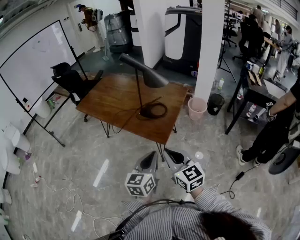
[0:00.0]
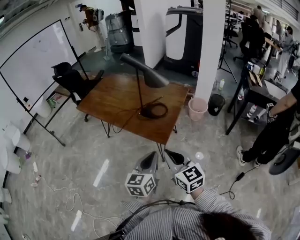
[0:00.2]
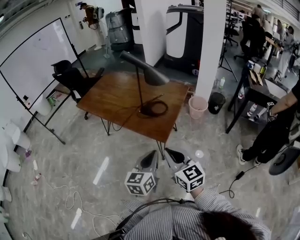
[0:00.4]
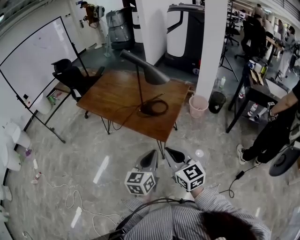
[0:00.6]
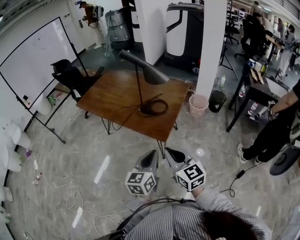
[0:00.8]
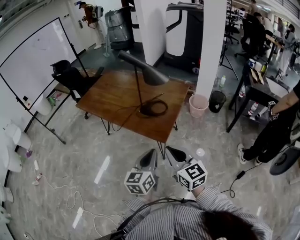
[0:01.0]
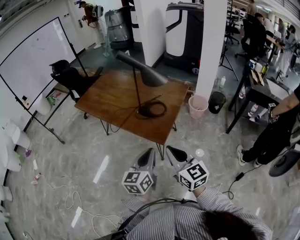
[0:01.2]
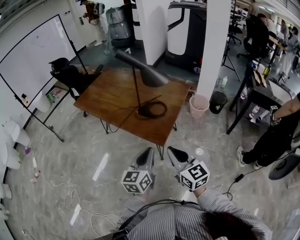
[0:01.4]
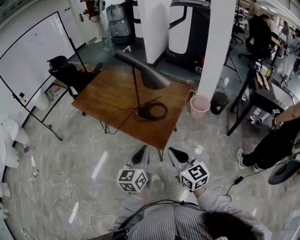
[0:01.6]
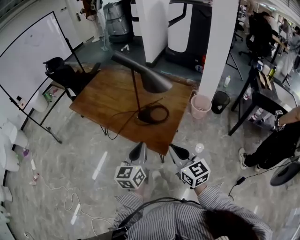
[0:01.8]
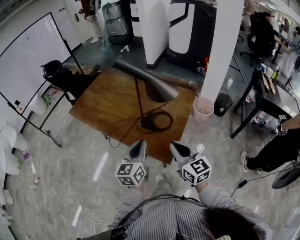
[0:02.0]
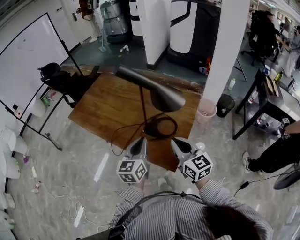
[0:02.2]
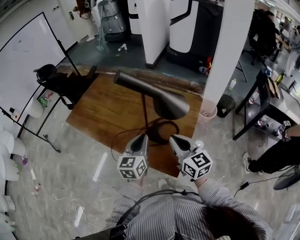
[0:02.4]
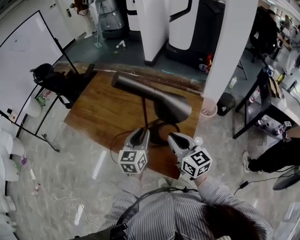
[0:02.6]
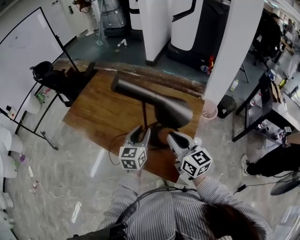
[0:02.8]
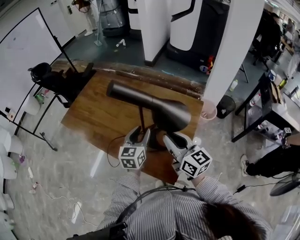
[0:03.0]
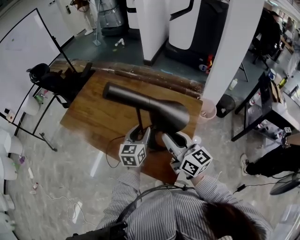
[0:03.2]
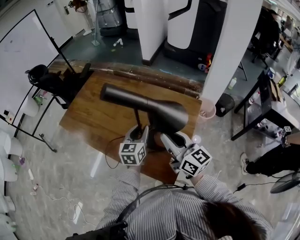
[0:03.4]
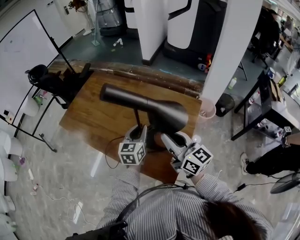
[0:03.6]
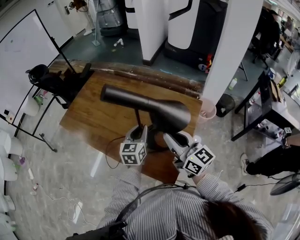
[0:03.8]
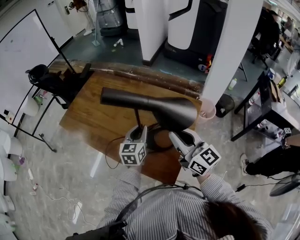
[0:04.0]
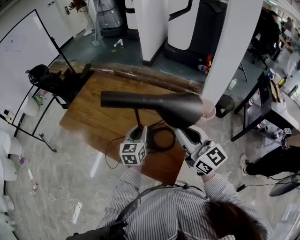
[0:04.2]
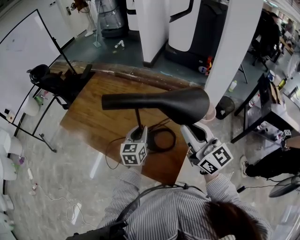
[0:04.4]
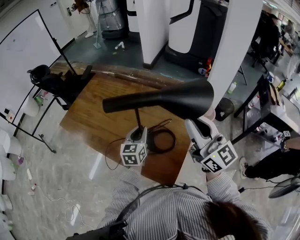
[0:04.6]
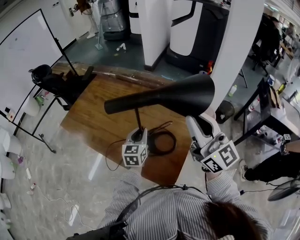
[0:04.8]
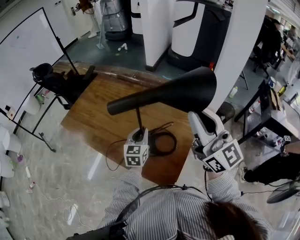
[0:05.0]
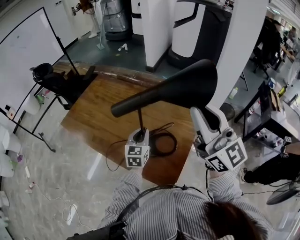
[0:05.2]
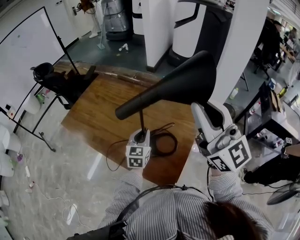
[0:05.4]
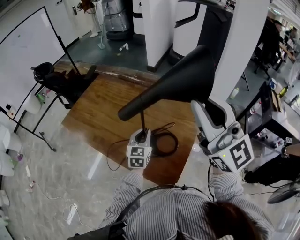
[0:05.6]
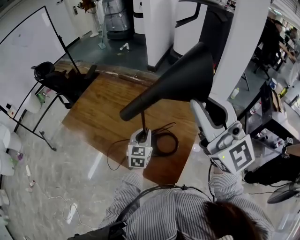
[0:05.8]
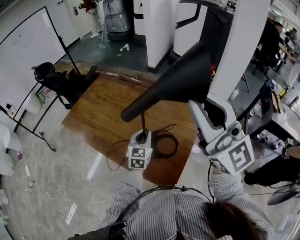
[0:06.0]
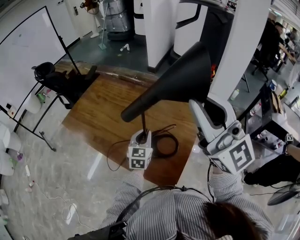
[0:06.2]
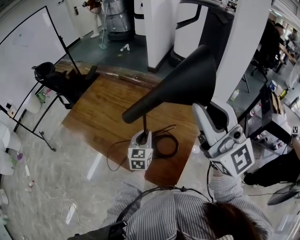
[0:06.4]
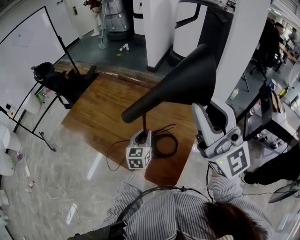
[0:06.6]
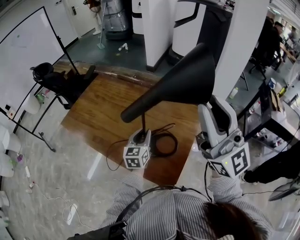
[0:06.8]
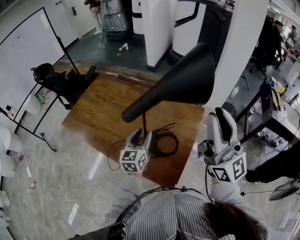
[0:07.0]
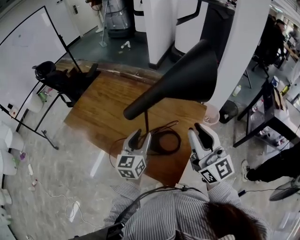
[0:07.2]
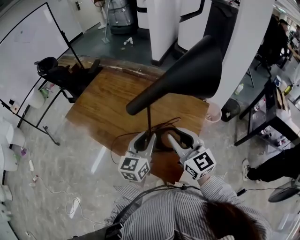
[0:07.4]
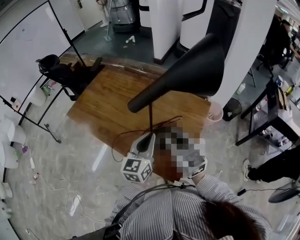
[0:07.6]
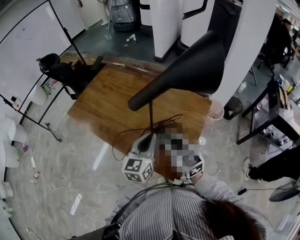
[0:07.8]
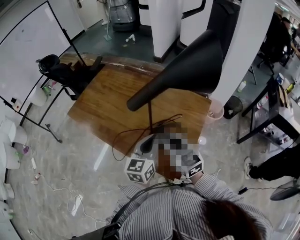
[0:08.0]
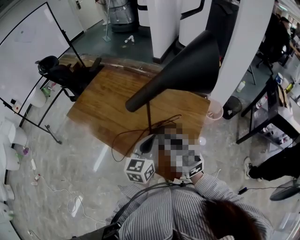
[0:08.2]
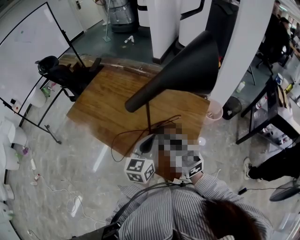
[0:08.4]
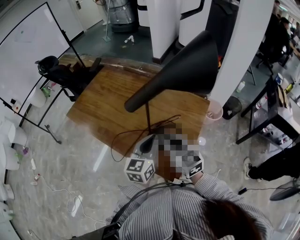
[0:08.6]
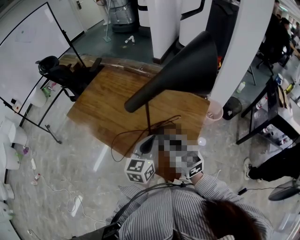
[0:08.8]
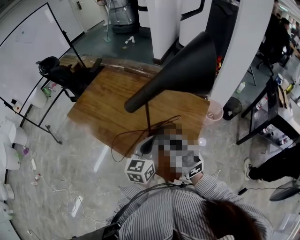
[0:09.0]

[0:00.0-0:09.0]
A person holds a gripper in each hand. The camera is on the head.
0:00.0 to 0:01.6: The left gripper shifts approximately 10 cm forward. Meanwhile the right gripper shifts approximately 10 cm forward and to the right.
0:01.6 to 0:03.0: Both grippers move forward, roughly 35 cm. The left gripper opens up.
0:03.0 to 0:04.4: The right gripper goes roughly 10 cm upward and to the right. Meanwhile the left gripper closes.
0:04.4 to 0:06.0: The right gripper shifts approximately 20 cm upward, and rotates some 30 degrees.
0:06.0 to 0:07.6: The right gripper shifts approximately 30 cm downward, and swivels roughly 40 degrees. The left gripper shifts about 10 cm backward and upward, and opens, then closes again.
0:07.6 to 0:09.0: The grippers stay close to where they were, moving slightly.

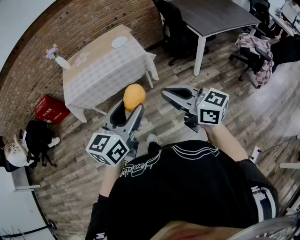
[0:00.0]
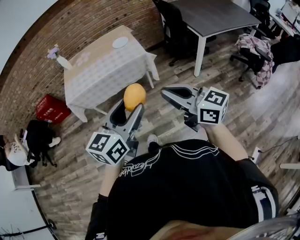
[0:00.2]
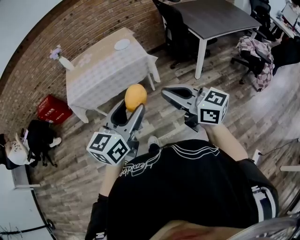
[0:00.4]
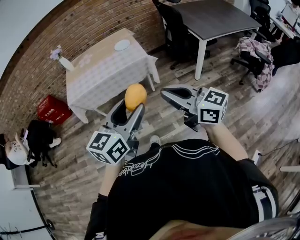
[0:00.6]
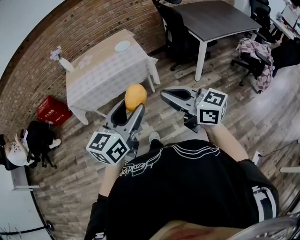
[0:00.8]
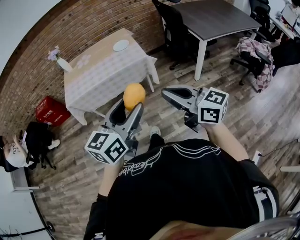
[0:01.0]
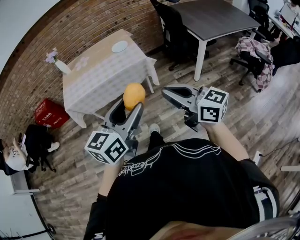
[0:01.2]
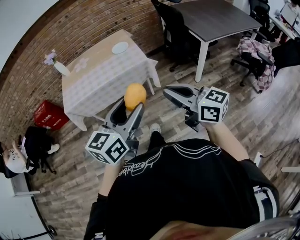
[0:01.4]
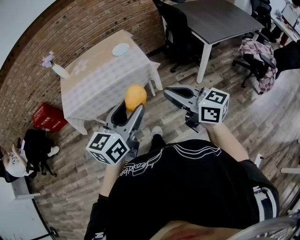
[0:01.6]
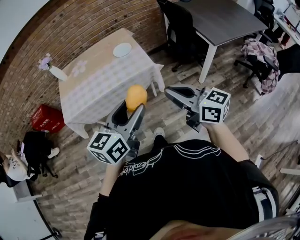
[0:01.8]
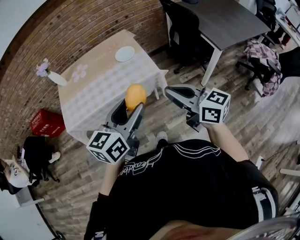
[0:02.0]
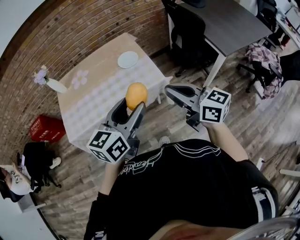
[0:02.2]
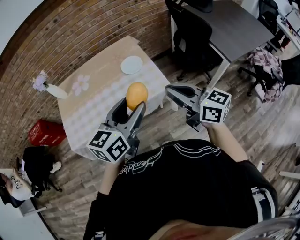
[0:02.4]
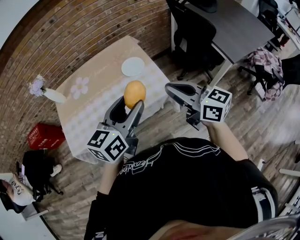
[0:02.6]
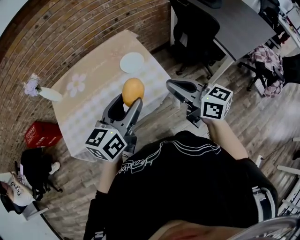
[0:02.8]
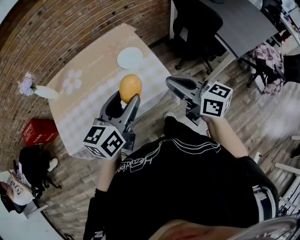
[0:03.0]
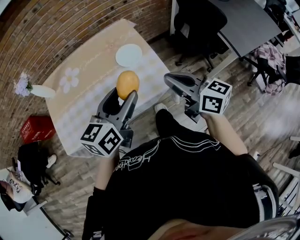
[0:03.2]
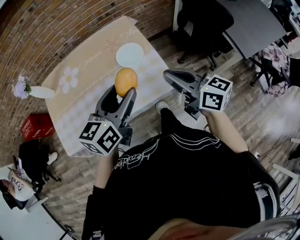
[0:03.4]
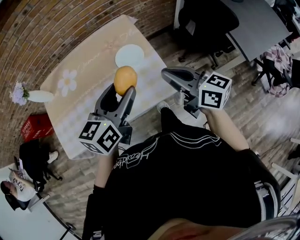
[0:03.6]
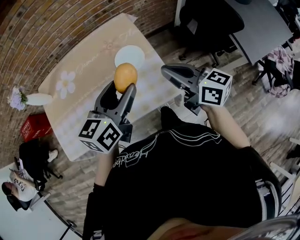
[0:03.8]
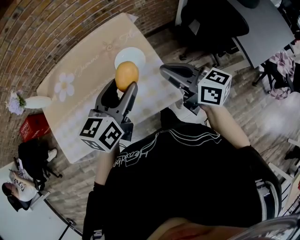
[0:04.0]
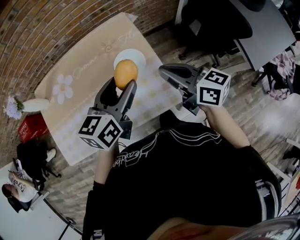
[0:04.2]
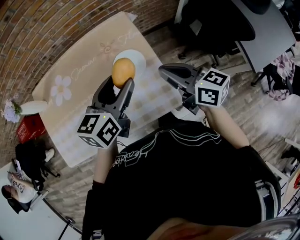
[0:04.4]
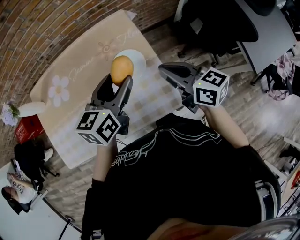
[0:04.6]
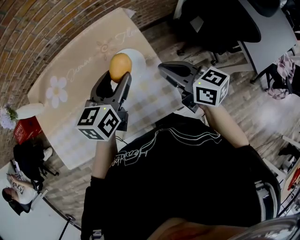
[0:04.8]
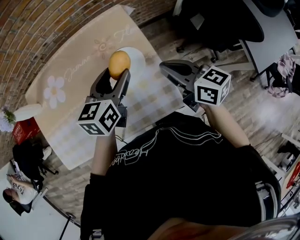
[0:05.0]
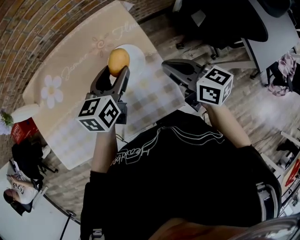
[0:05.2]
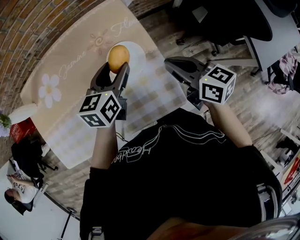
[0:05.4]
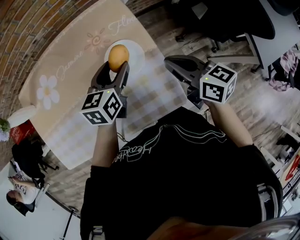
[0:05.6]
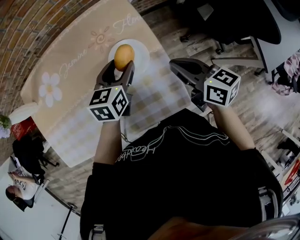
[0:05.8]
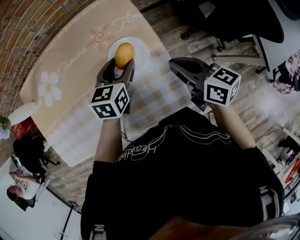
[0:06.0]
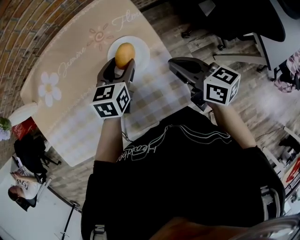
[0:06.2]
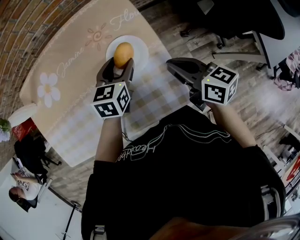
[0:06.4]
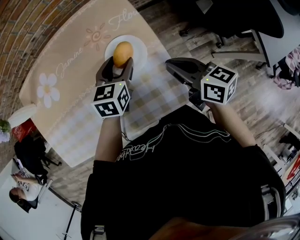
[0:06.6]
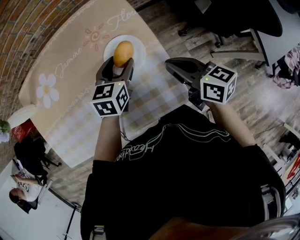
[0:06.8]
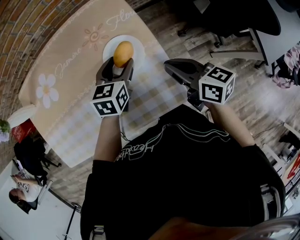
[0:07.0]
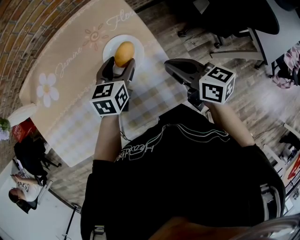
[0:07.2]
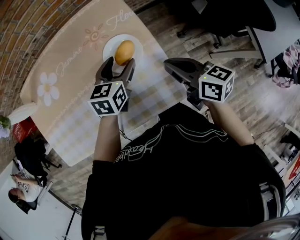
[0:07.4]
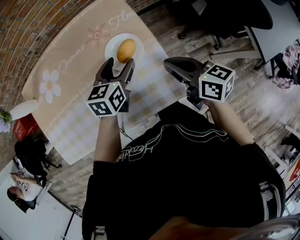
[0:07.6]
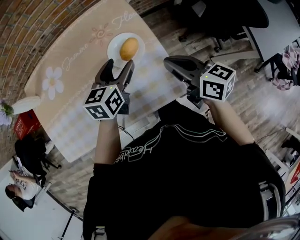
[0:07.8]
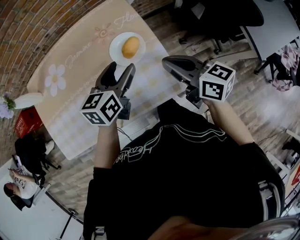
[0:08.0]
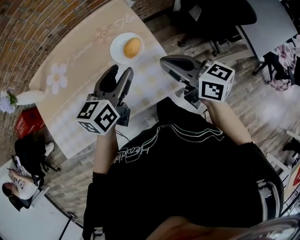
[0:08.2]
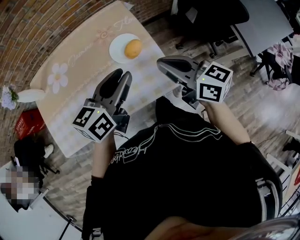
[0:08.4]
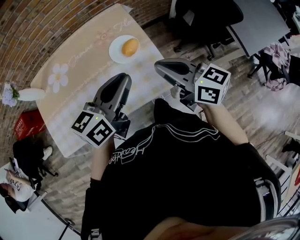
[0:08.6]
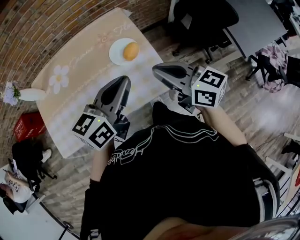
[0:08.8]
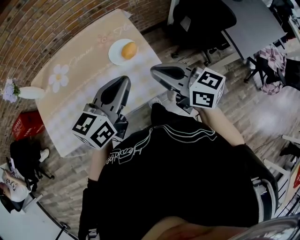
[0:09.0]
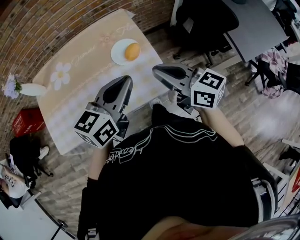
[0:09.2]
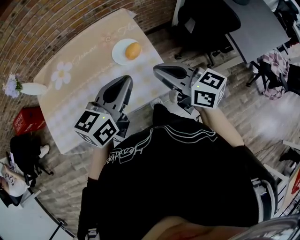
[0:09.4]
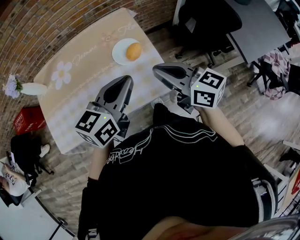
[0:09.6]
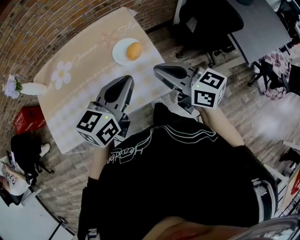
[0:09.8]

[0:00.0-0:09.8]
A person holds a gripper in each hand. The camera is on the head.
0:00.0 to 0:01.4: The grippers both shift forward by some 5 cm.
0:01.4 to 0:02.8: Both grippers are carried forward, approximately 40 cm.
0:02.8 to 0:04.2: The left gripper heads forward, covering roughly 25 cm. The right gripper is displaced forward and downward by some 25 cm.
0:04.2 to 0:05.6: The right gripper moves downward and forward, roughly 10 cm, while the left gripper moves downward and forward, approximately 20 cm.
0:05.6 to 0:07.0: The left gripper changes place by some 5 cm.
0:07.0 to 0:08.4: The left gripper travels upward and backward by some 25 cm, swivels approximately 30 degrees, and closes up. Meanwhile the right gripper moves upward and backward, some 15 cm.
0:08.4 to 0:09.8: The left gripper ends up some 5 cm from where it was, and closes.

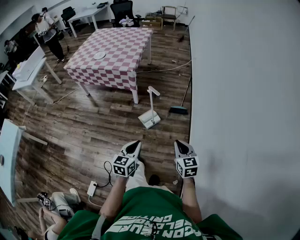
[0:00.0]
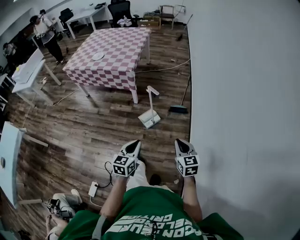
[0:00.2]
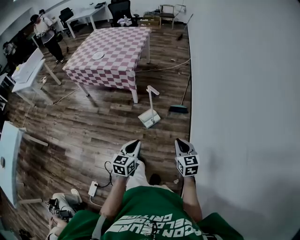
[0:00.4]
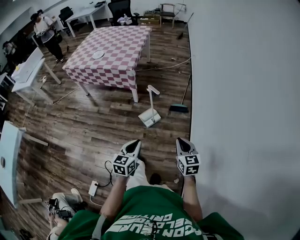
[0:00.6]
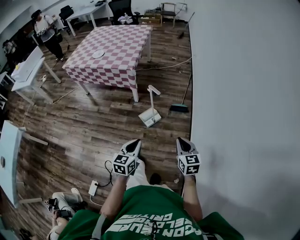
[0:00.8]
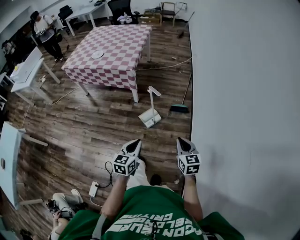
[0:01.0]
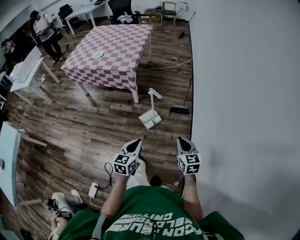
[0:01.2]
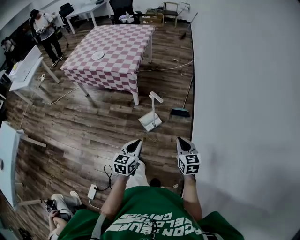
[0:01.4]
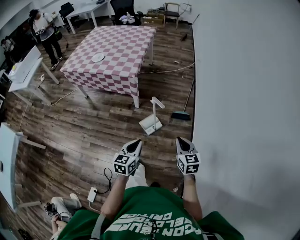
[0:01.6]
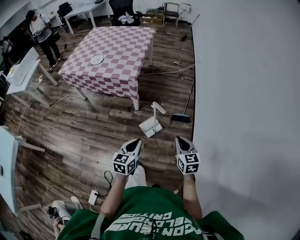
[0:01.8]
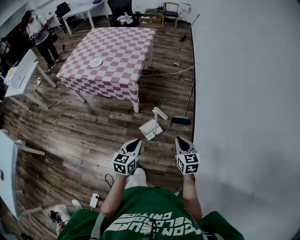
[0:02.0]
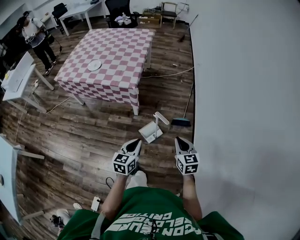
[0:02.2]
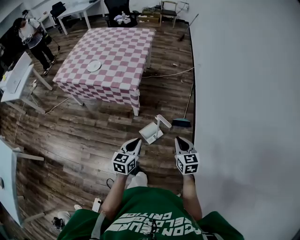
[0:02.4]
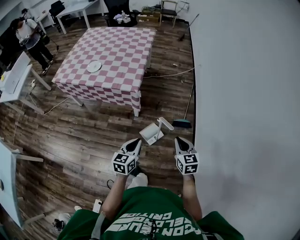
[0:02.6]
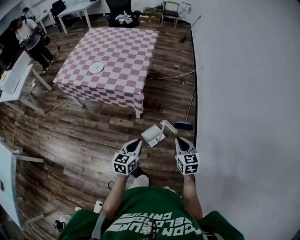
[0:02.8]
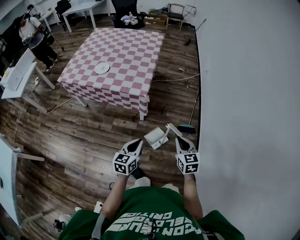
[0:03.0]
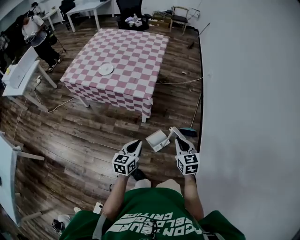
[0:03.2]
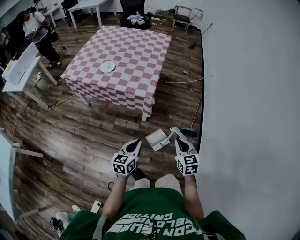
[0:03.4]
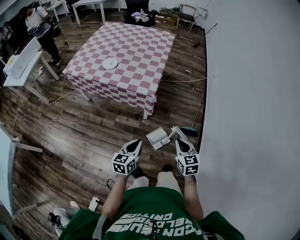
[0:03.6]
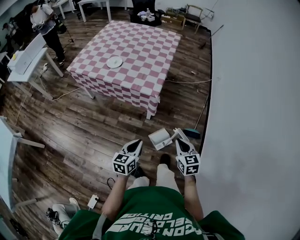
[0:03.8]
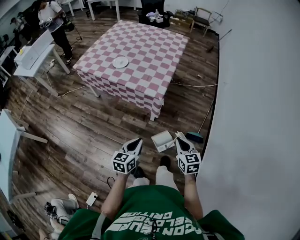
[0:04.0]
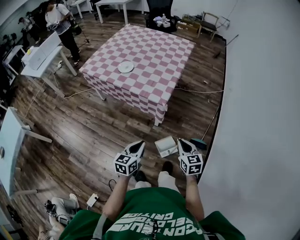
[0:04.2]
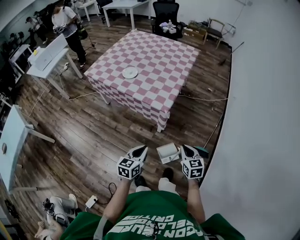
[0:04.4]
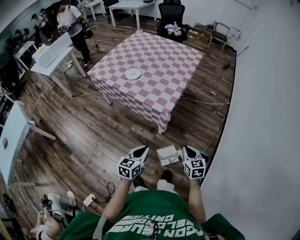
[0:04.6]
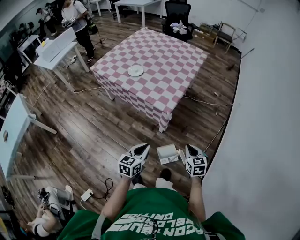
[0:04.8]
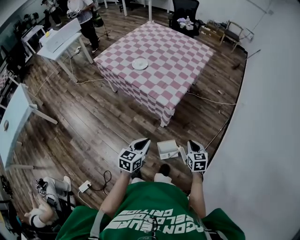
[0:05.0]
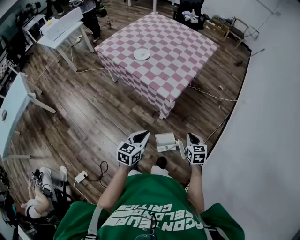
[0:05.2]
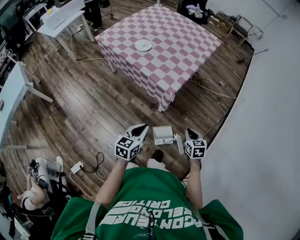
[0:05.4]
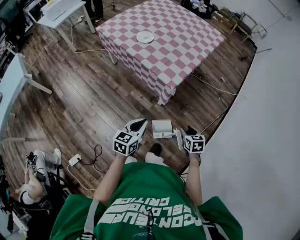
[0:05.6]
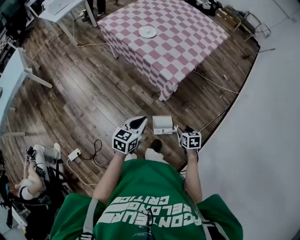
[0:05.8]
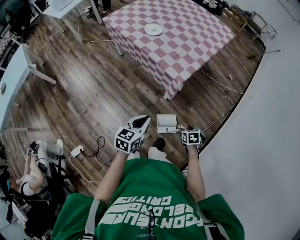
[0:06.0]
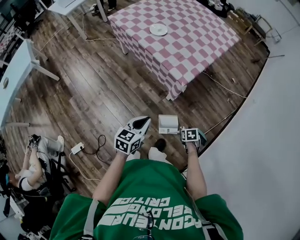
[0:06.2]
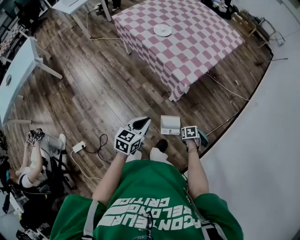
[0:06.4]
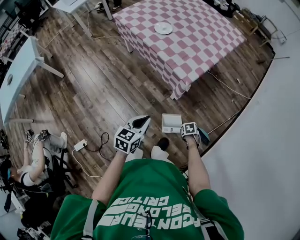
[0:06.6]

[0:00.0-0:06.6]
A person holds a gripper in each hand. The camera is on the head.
0:00.0 to 0:01.6: Both grippers travel together forward, some 15 cm.
0:01.6 to 0:03.2: Both grippers move forward and to the left, roughly 30 cm.
0:03.2 to 0:05.0: The right gripper heads forward and downward, covering some 15 cm, while the left gripper heads forward, covering some 5 cm.
0:05.0 to 0:06.6: The right gripper moves downward, about 25 cm, tilts its fingers some 50 degrees downward, and opens up.
